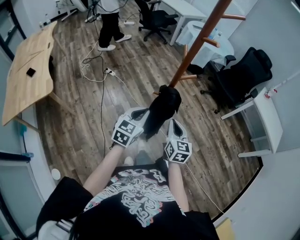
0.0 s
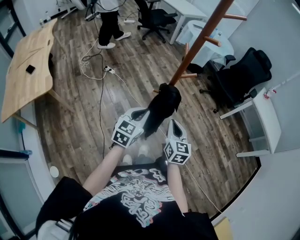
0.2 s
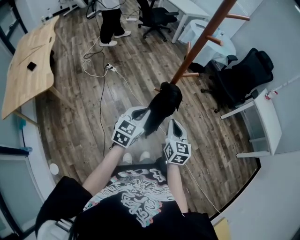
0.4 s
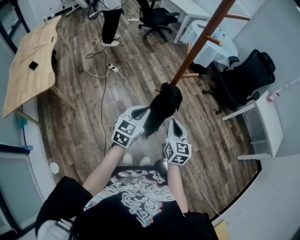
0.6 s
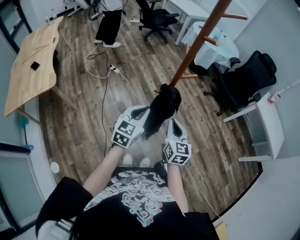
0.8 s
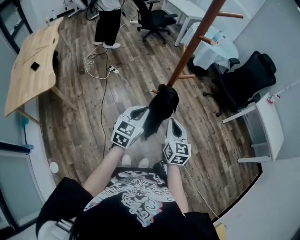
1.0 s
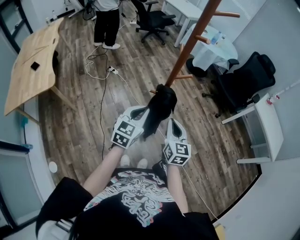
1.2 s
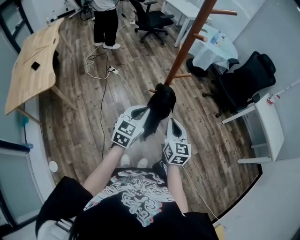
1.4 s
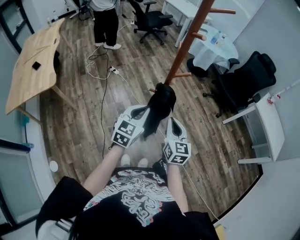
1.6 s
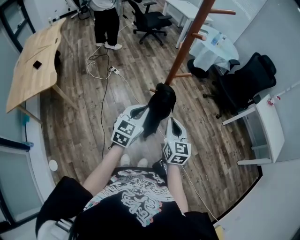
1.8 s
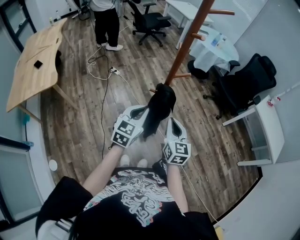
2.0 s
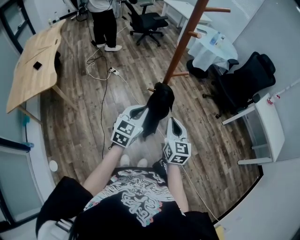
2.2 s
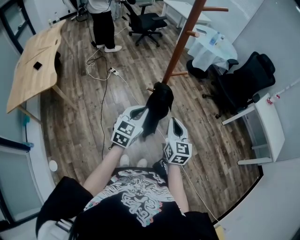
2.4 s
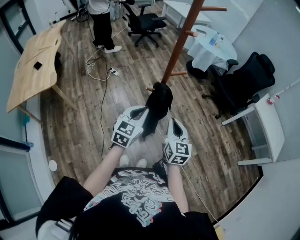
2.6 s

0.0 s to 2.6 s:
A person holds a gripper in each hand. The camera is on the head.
0.0 to 1.2 s: There are only small adjustments of the grippers.
1.2 to 2.6 s: The grippers move only a little.

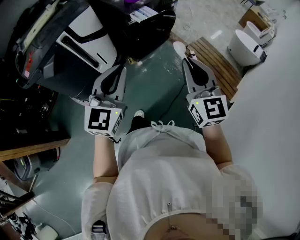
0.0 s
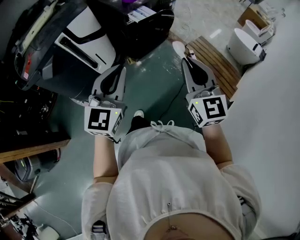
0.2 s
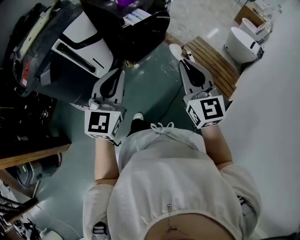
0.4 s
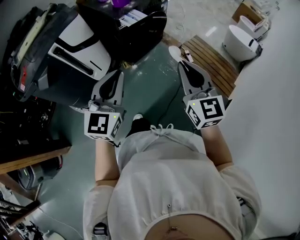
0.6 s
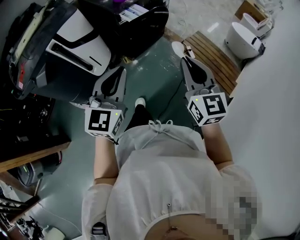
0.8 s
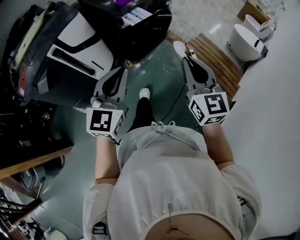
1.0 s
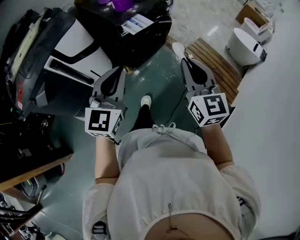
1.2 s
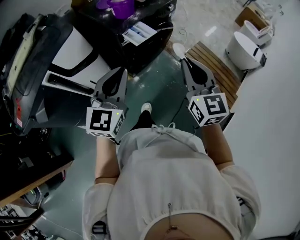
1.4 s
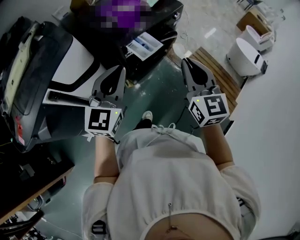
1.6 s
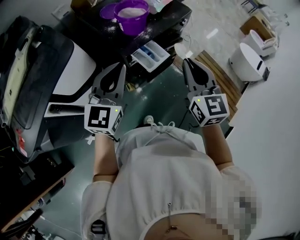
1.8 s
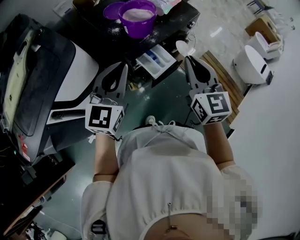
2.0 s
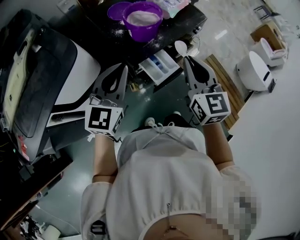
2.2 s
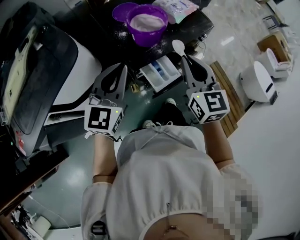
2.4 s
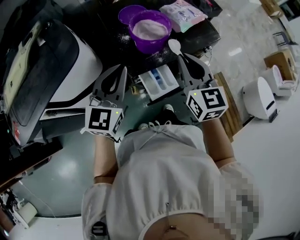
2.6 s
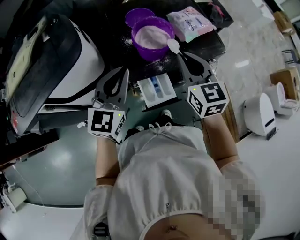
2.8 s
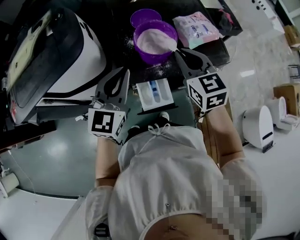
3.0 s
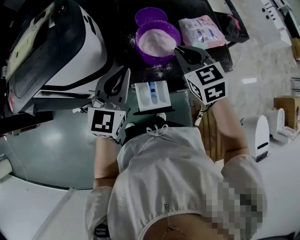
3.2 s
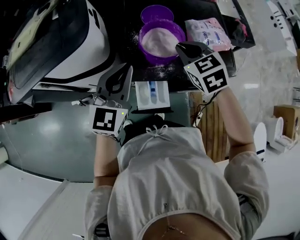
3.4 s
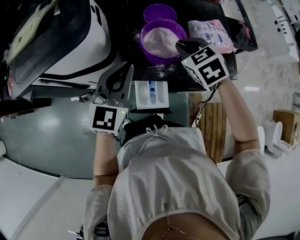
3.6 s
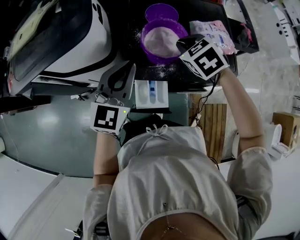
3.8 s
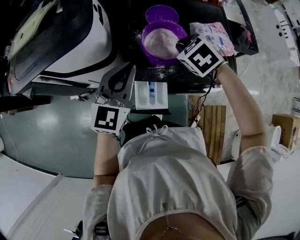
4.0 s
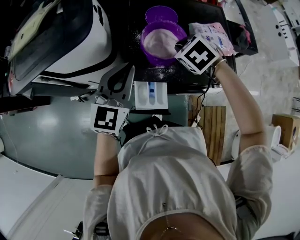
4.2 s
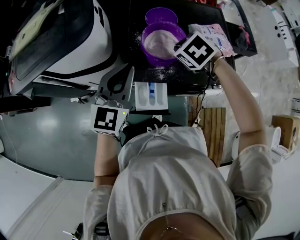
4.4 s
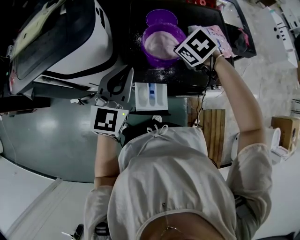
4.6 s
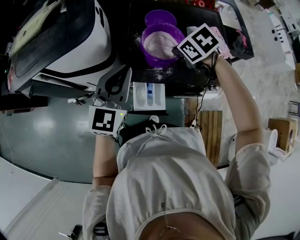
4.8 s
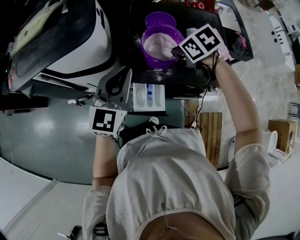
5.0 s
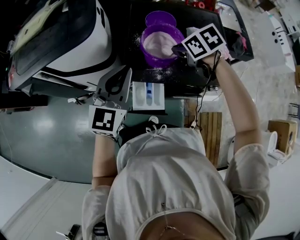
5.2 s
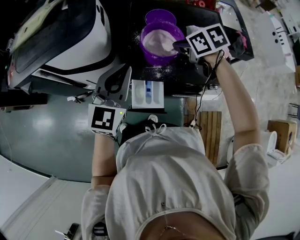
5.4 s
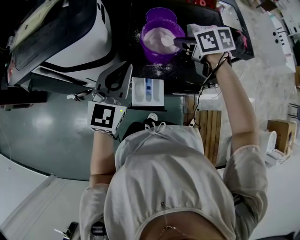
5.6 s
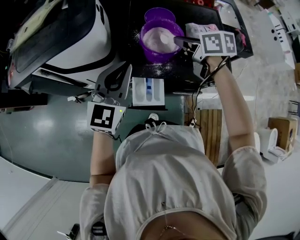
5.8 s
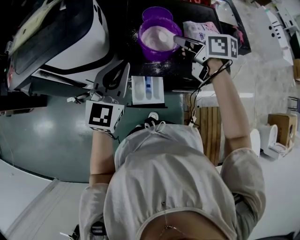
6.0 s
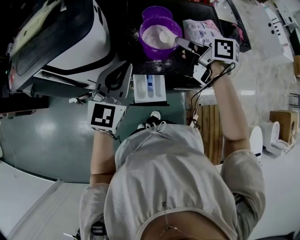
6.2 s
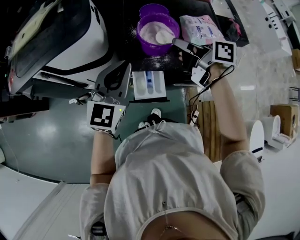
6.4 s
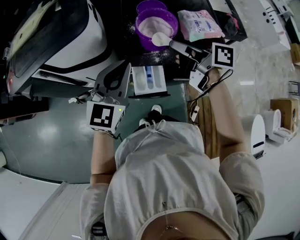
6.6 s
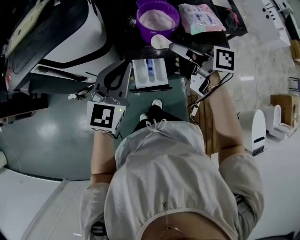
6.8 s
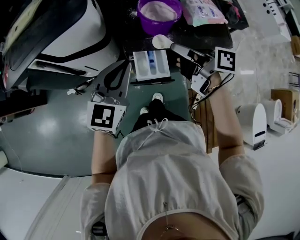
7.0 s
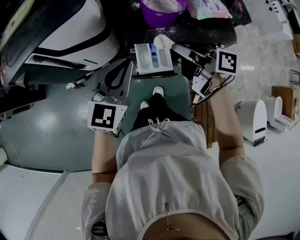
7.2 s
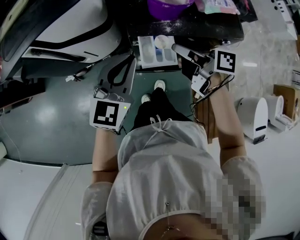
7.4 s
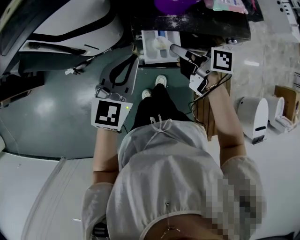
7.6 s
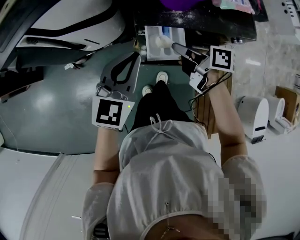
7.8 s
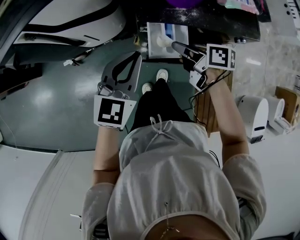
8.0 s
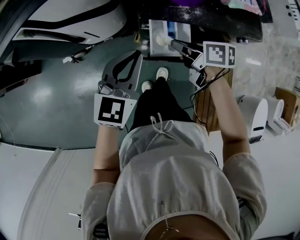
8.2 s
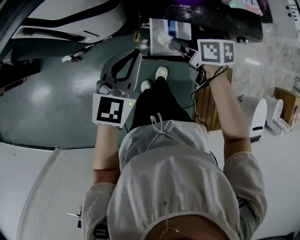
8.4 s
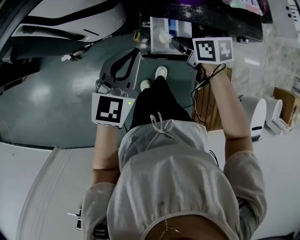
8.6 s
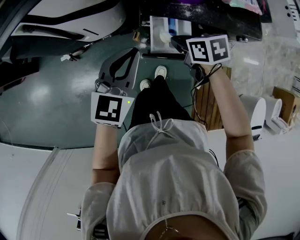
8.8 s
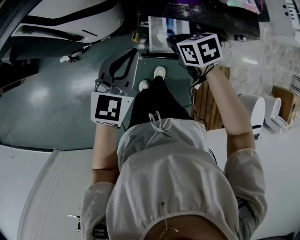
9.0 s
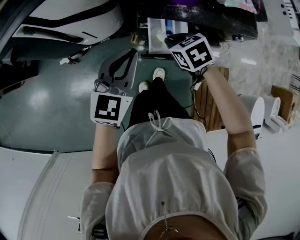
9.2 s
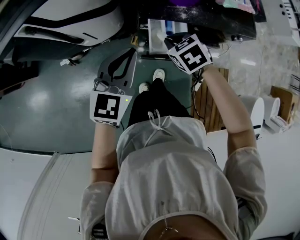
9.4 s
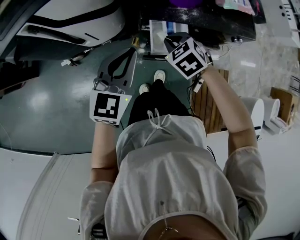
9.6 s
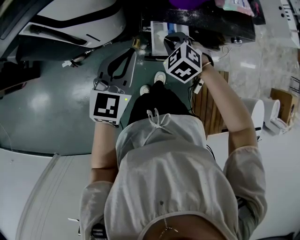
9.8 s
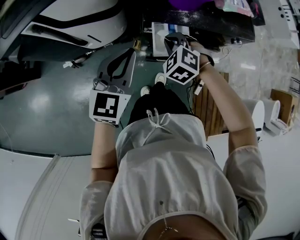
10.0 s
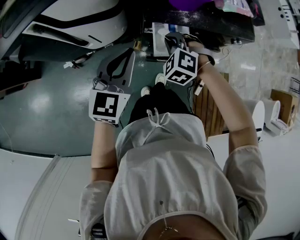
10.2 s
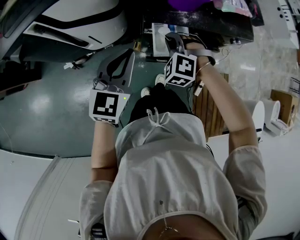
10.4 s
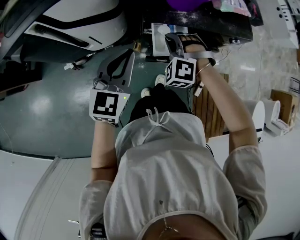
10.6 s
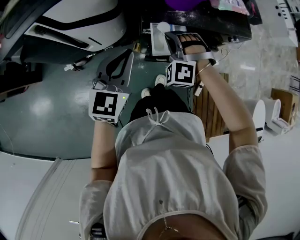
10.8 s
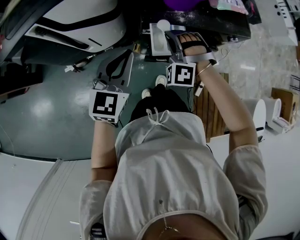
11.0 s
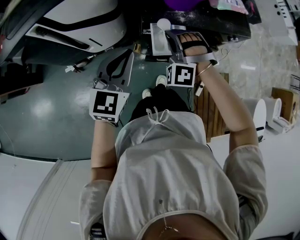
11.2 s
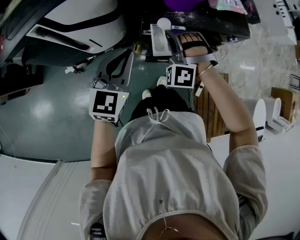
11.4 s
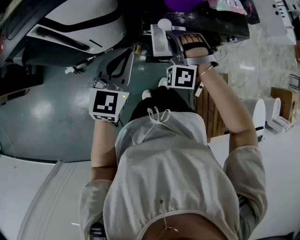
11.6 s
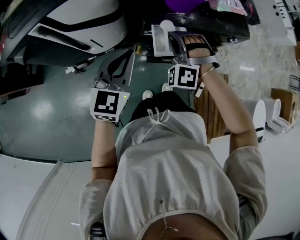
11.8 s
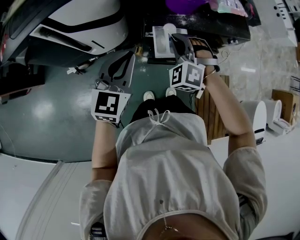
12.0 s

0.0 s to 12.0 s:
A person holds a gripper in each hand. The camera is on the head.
0.0 to 1.6 s: Both grippers travel together forward, about 35 cm.
1.6 to 3.0 s: The left gripper moves approximately 25 cm, and rotates roughly 30 degrees; the right gripper moves roughly 40 cm, and swivels roughly 40 degrees.
3.0 to 4.4 s: The right gripper travels downward and forward by approximately 10 cm, and points its fingers some 40 degrees further downward.
4.4 to 6.0 s: The right gripper moves upward, approximately 5 cm, and angles its fingers upward, by some 40 degrees.
6.0 to 7.6 s: The left gripper shifts about 15 cm downward, backward and to the left. Meanwhile the right gripper heads backward, downward and to the left, covering roughly 25 cm, and turns by about 30 degrees.
7.6 to 9.0 s: The left gripper changes place by approximately 5 cm. Meanwhile the right gripper moves downward, about 10 cm, and rolls counterclockwise, seen from behind, by about 40 degrees.
9.0 to 10.4 s: The right gripper rolls counterclockwise, seen from behind, by approximately 70 degrees.
10.4 to 12.0 s: The right gripper travels upward by roughly 5 cm.

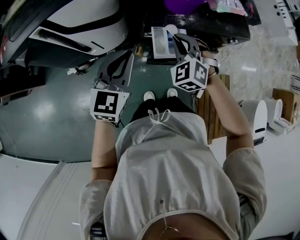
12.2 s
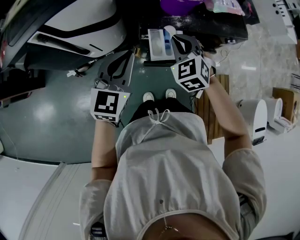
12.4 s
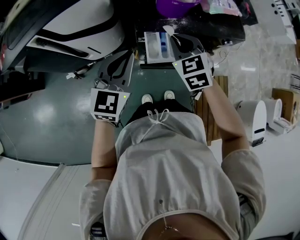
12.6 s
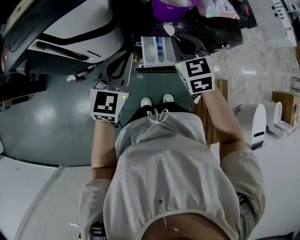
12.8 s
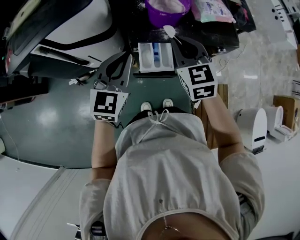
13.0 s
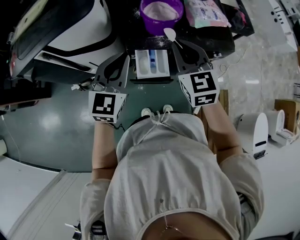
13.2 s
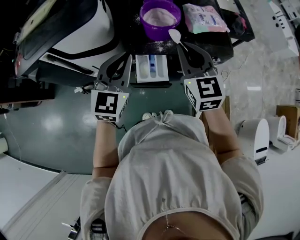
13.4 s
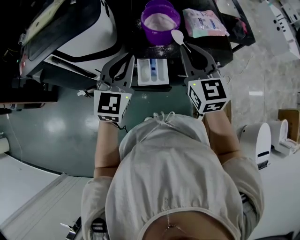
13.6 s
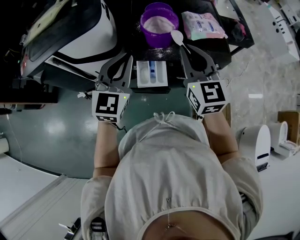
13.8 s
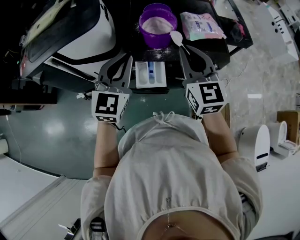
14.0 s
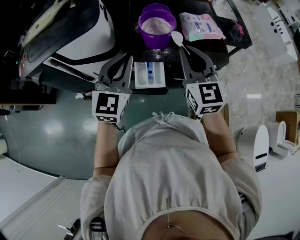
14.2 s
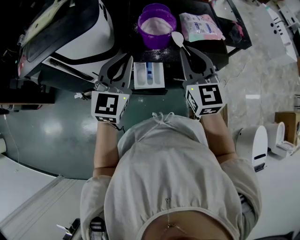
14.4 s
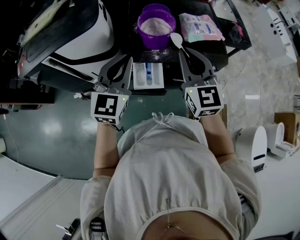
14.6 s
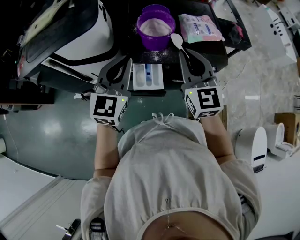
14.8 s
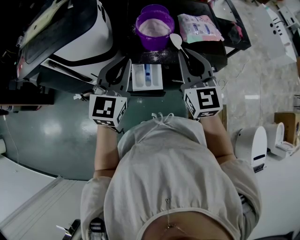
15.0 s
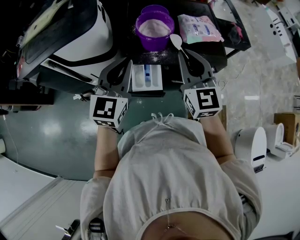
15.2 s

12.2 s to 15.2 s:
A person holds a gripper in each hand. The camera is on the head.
12.2 to 13.8 s: Both grippers travel together upward and to the right, roughly 20 cm. The right gripper rolls clockwise, seen from behind, by roughly 40 degrees.
13.8 to 15.2 s: There are only small adjustments of the grippers.

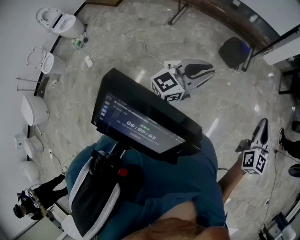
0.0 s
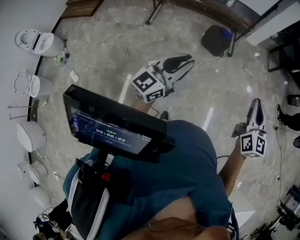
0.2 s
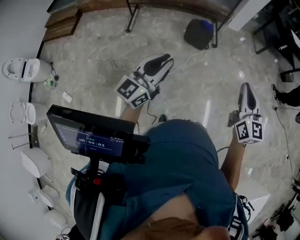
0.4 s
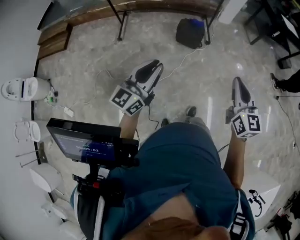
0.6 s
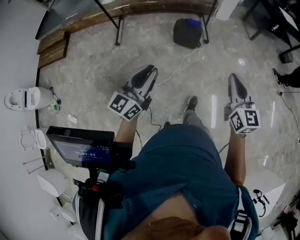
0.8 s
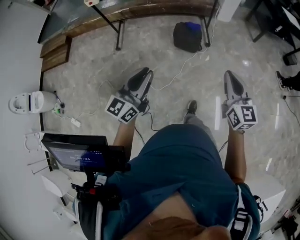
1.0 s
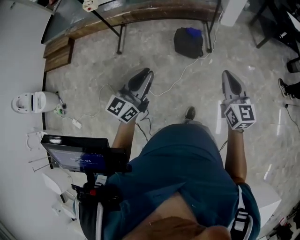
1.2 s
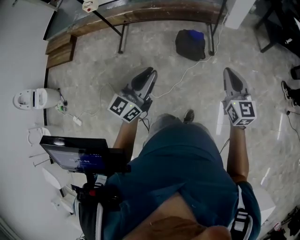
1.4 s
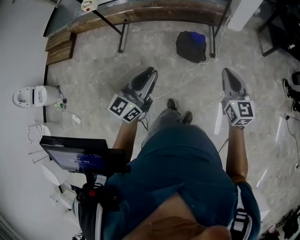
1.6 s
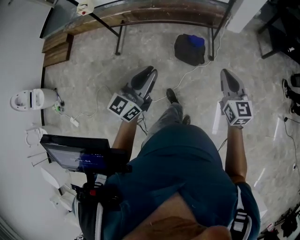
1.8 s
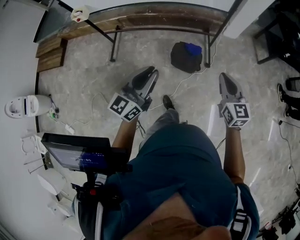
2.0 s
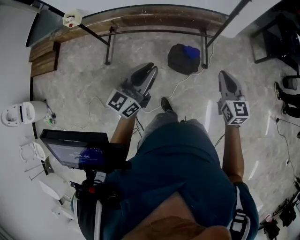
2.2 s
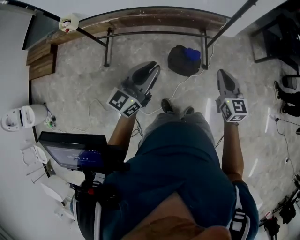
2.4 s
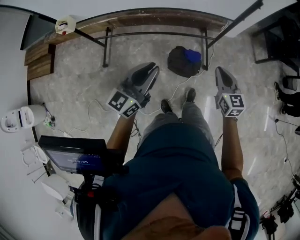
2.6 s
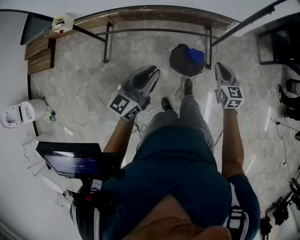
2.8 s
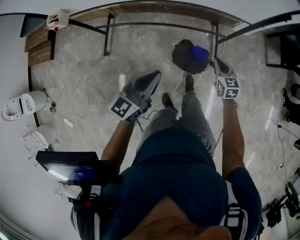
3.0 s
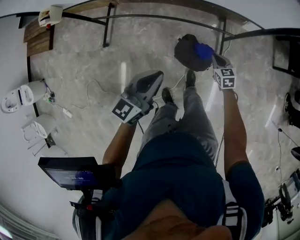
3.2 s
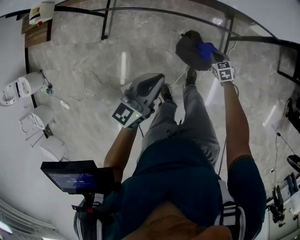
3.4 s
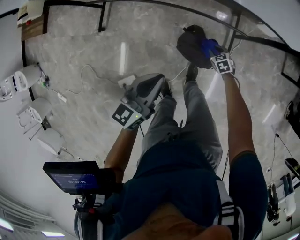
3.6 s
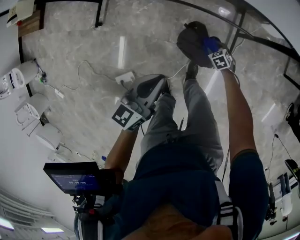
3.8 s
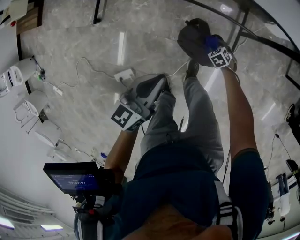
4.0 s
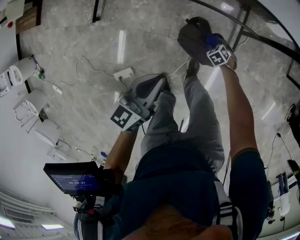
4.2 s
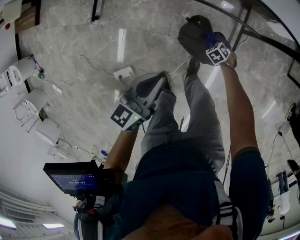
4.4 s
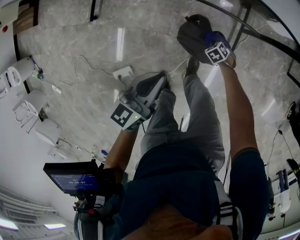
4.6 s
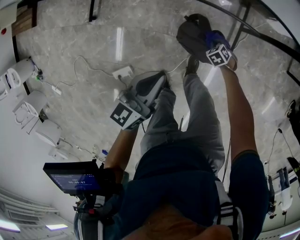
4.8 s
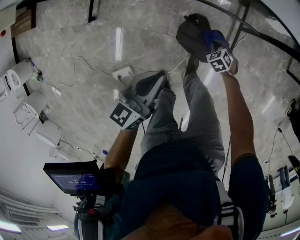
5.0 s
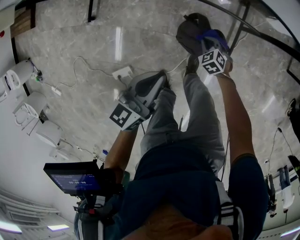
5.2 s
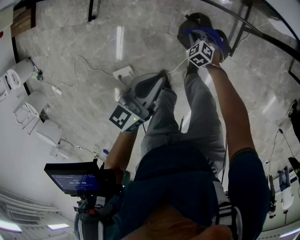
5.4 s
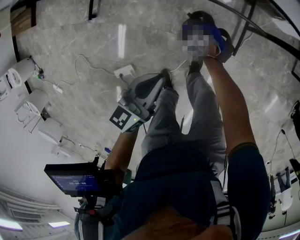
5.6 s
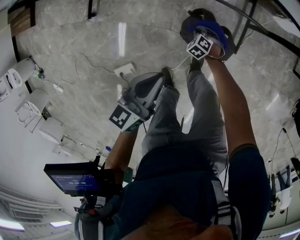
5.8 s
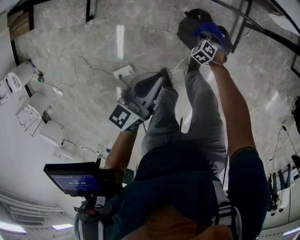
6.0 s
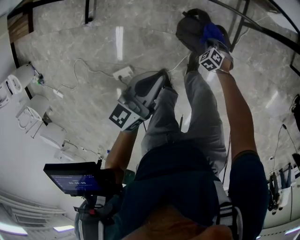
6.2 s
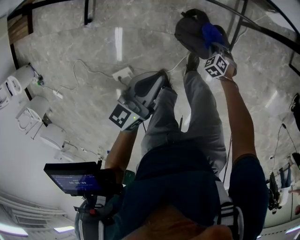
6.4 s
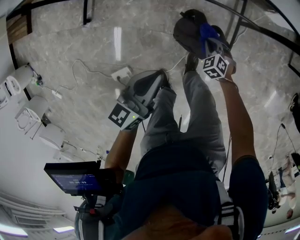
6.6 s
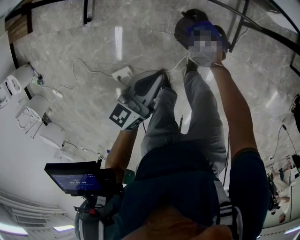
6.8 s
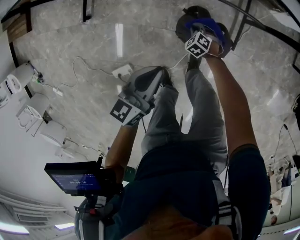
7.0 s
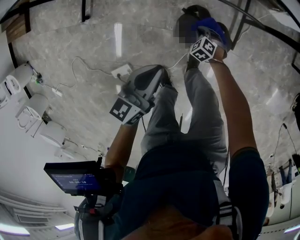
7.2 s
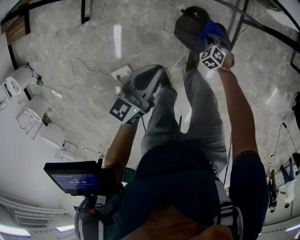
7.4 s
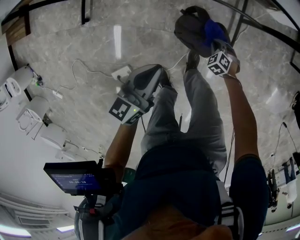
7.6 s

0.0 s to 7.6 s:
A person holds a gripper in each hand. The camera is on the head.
0.0 to 1.6 s: The two grippers go some 35 cm forward.
1.6 to 3.0 s: The right gripper heads forward and downward, covering about 50 cm, and turns by about 20 degrees, while the left gripper is displaced forward by roughly 35 cm.
3.0 to 4.6 s: The left gripper travels downward by approximately 20 cm, and changes its angle by about 20 degrees. The right gripper travels downward by roughly 40 cm, tips its fingers downward by about 50 degrees, and opens, then closes once more.
4.6 to 6.0 s: The right gripper travels upward and back again, approximately 5 cm each way.
6.0 to 7.6 s: The right gripper changes place by some 10 cm.
